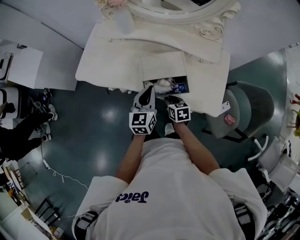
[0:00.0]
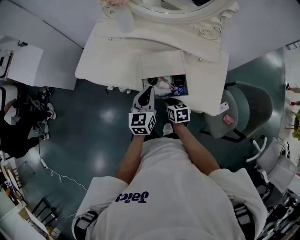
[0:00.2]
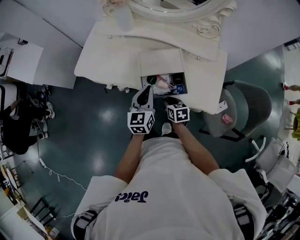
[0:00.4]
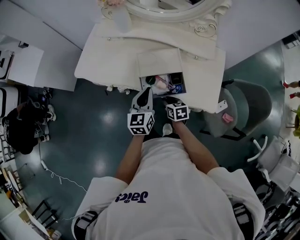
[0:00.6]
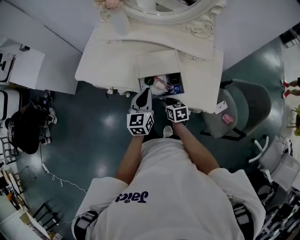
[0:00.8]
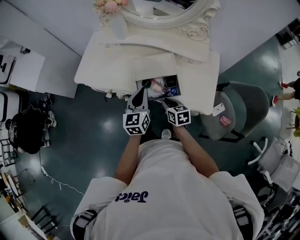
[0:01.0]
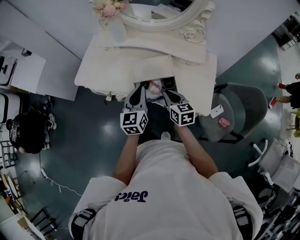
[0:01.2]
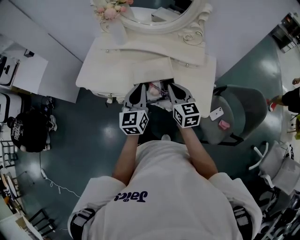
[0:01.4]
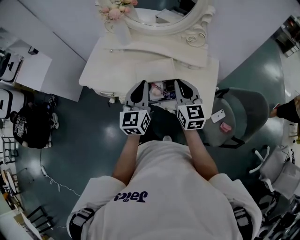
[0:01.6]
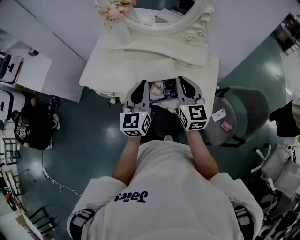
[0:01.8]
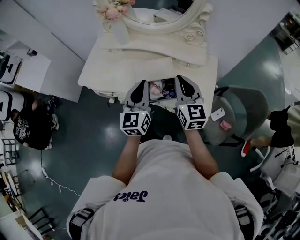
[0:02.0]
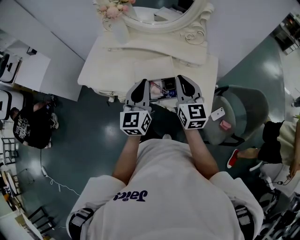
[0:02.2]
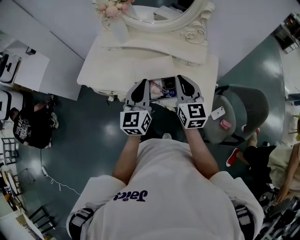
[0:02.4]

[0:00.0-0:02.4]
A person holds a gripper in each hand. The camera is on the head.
0:00.0 to 0:01.2: The right gripper travels upward by approximately 15 cm, and changes its angle by about 20 degrees. The left gripper goes some 5 cm upward.
0:01.2 to 0:02.4: The right gripper travels upward by about 15 cm, and rotates some 30 degrees. Meanwhile the left gripper moves upward, roughly 10 cm.

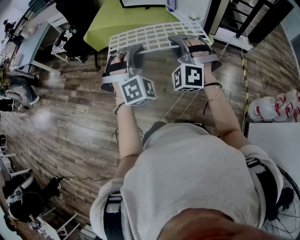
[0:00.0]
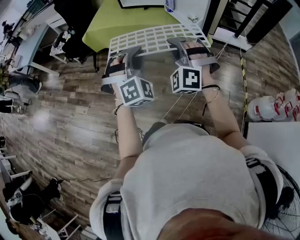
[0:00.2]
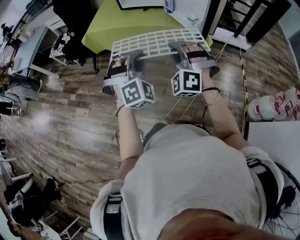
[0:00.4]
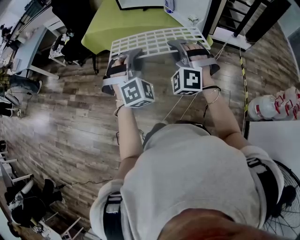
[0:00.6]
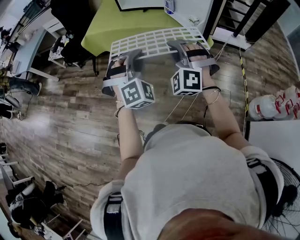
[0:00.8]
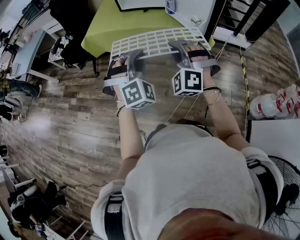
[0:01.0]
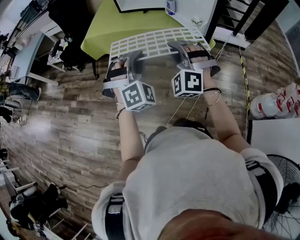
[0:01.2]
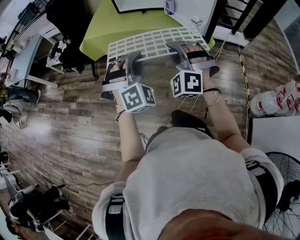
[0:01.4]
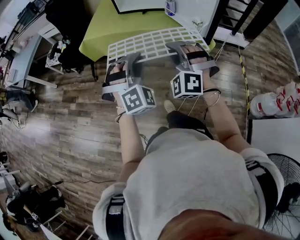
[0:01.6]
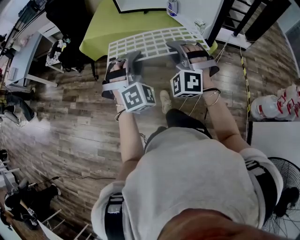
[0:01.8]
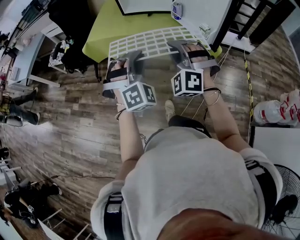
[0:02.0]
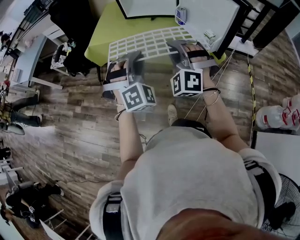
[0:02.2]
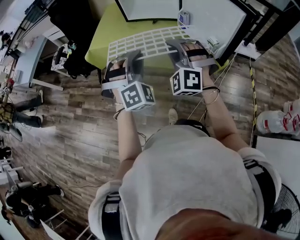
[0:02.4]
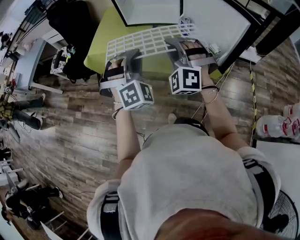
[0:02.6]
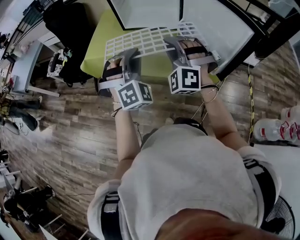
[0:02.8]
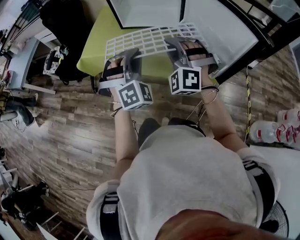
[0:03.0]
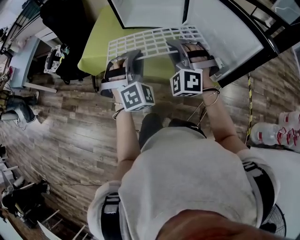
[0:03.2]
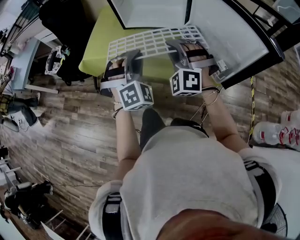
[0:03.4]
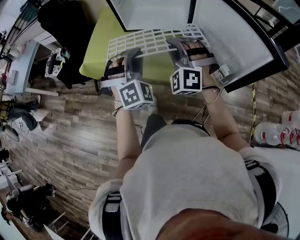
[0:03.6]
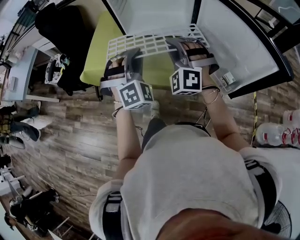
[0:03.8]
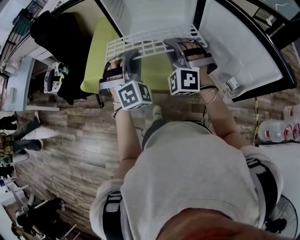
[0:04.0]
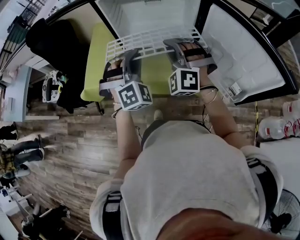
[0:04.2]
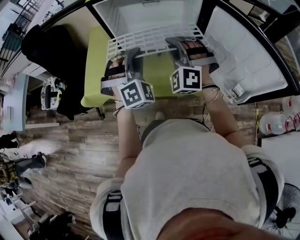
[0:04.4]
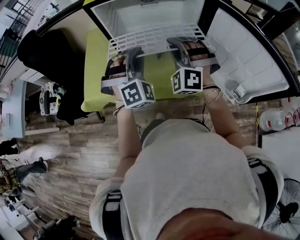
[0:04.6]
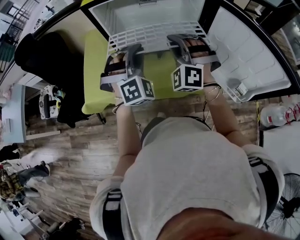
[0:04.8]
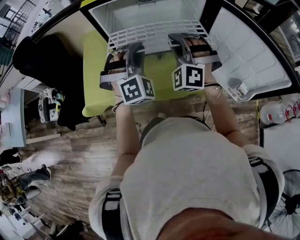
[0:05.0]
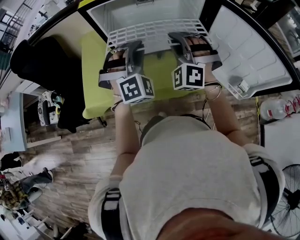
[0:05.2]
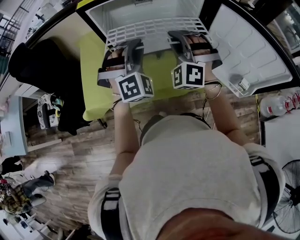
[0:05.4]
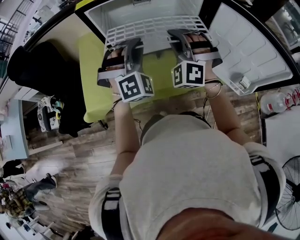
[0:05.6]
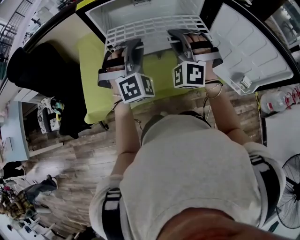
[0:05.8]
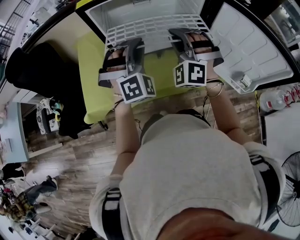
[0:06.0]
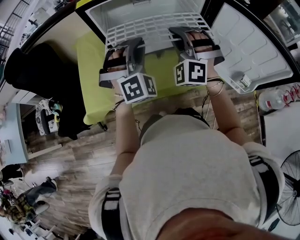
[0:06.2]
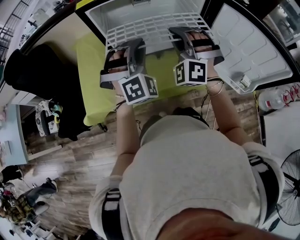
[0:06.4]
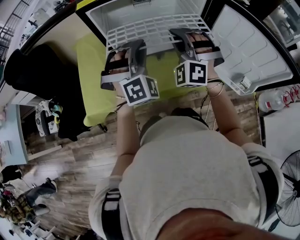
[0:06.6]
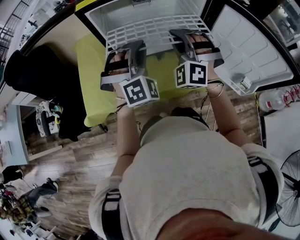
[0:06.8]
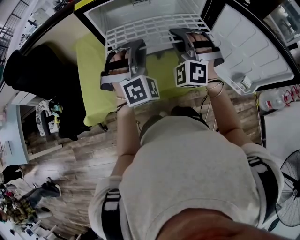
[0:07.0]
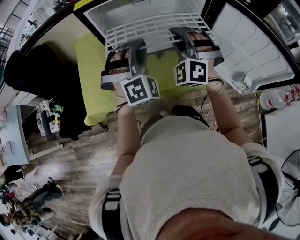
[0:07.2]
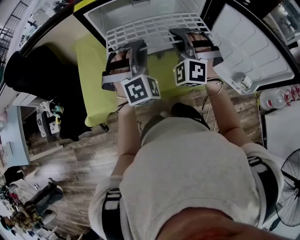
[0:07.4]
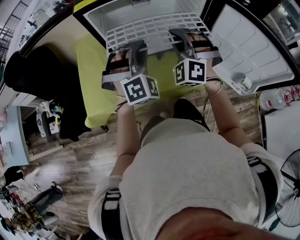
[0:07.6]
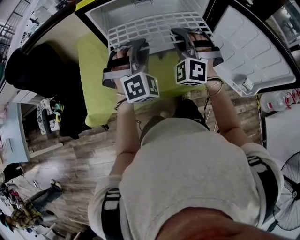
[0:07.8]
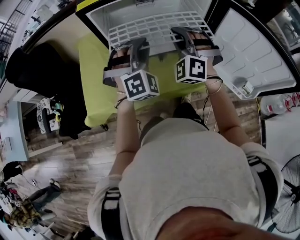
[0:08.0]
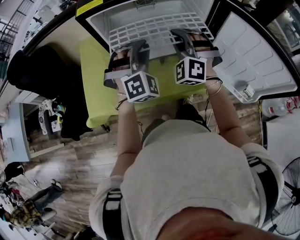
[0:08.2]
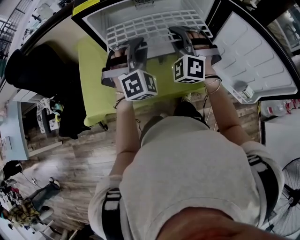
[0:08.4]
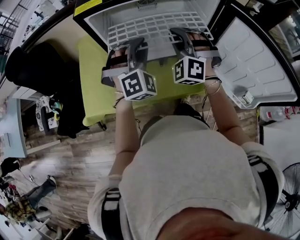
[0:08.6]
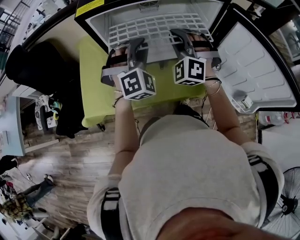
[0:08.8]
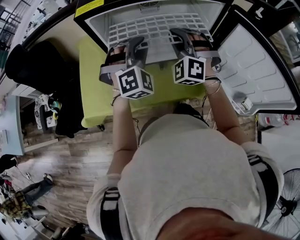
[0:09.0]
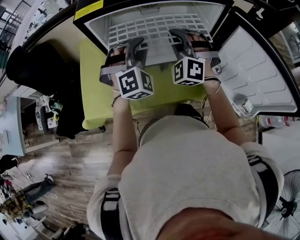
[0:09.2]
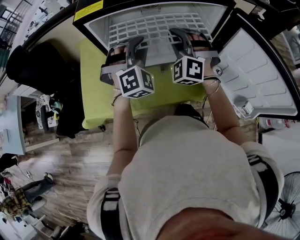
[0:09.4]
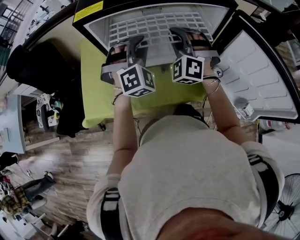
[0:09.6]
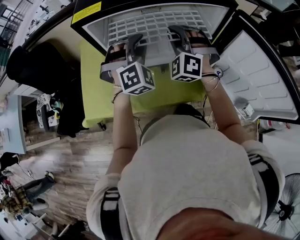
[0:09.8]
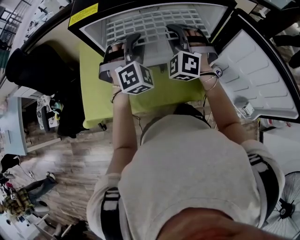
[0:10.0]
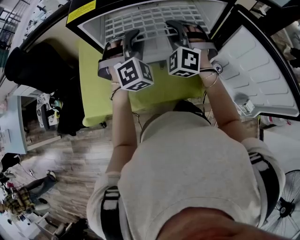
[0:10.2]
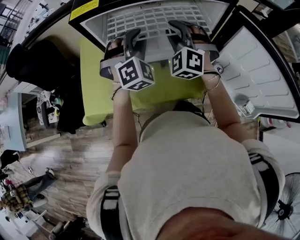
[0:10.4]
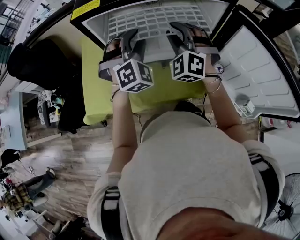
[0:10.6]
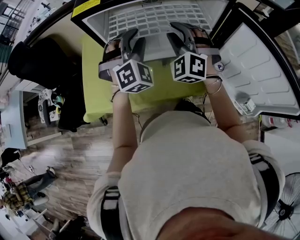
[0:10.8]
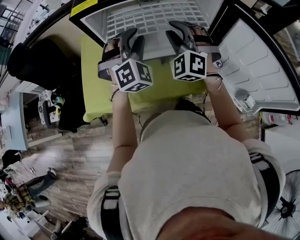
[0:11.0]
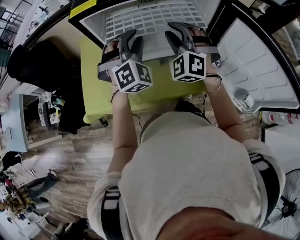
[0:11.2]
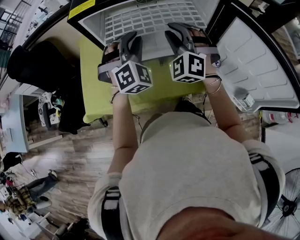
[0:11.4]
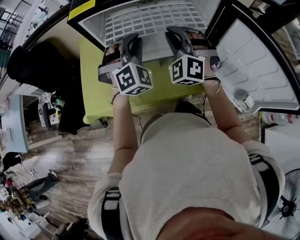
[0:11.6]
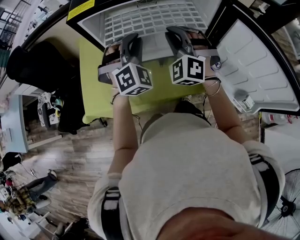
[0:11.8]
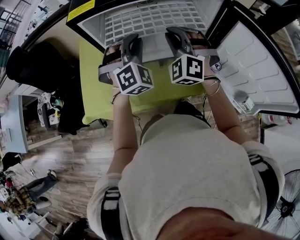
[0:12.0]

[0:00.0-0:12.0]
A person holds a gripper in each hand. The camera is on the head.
0:00.0 to 0:01.6: The two grippers go some 5 cm forward.
0:01.6 to 0:03.0: Both grippers travel together forward, some 25 cm.
0:03.0 to 0:04.4: The two grippers go approximately 20 cm forward.
0:04.4 to 0:06.0: Both grippers travel together forward, some 5 cm.
0:06.0 to 0:07.6: The grippers stay close to where they were, moving slightly.
0:07.6 to 0:09.0: The grippers both shift forward by some 5 cm.
0:09.0 to 0:12.0: The grippers make only small movements.

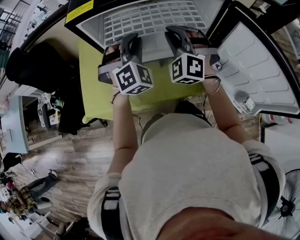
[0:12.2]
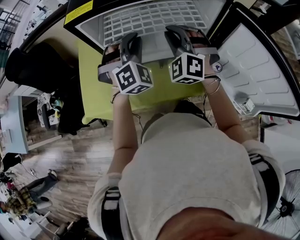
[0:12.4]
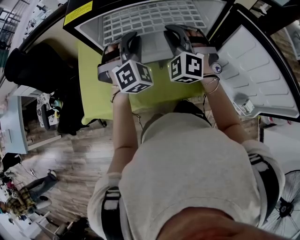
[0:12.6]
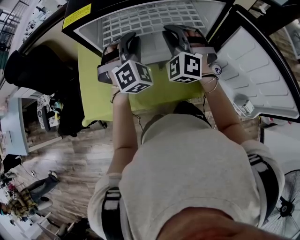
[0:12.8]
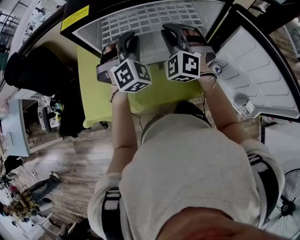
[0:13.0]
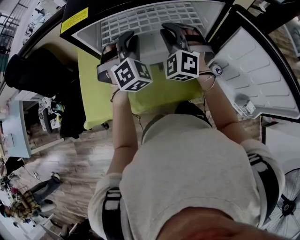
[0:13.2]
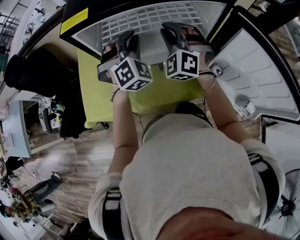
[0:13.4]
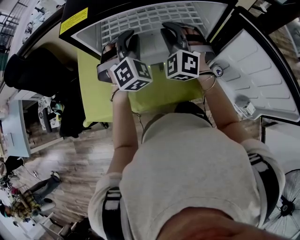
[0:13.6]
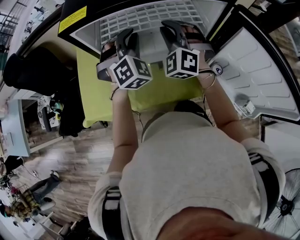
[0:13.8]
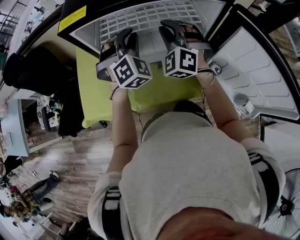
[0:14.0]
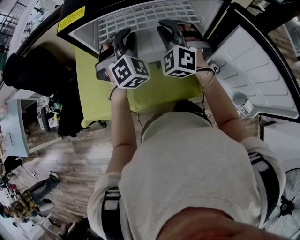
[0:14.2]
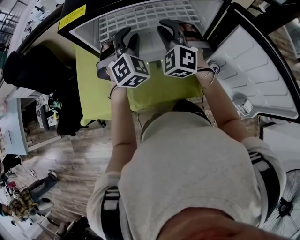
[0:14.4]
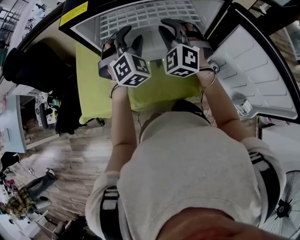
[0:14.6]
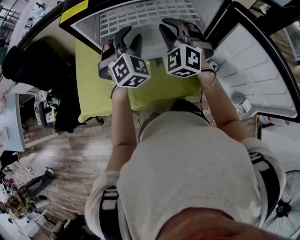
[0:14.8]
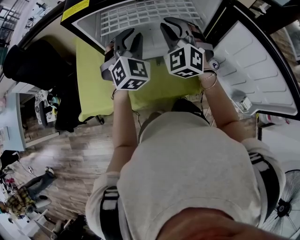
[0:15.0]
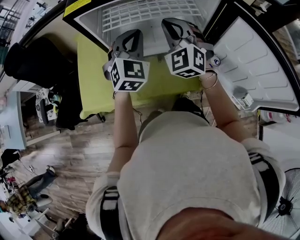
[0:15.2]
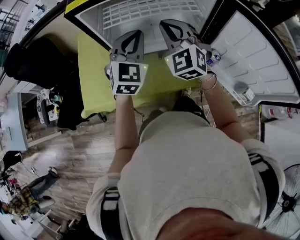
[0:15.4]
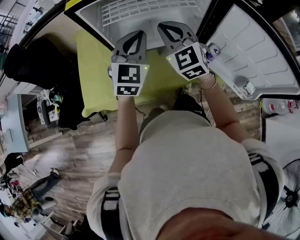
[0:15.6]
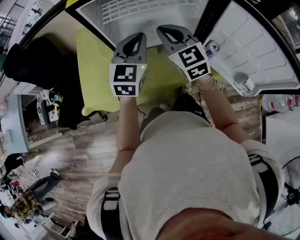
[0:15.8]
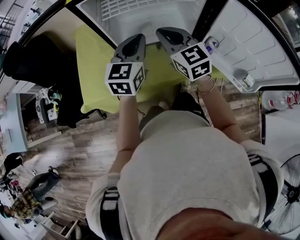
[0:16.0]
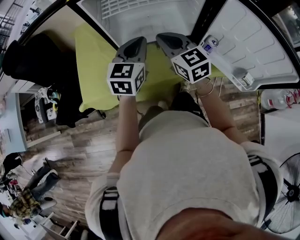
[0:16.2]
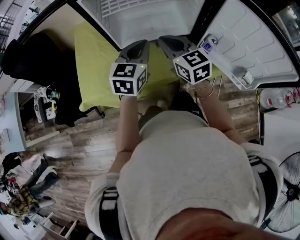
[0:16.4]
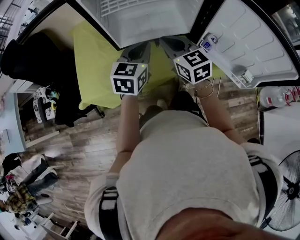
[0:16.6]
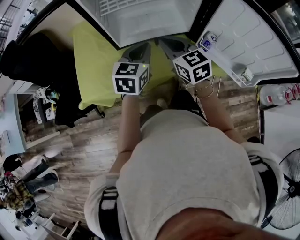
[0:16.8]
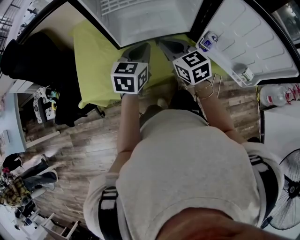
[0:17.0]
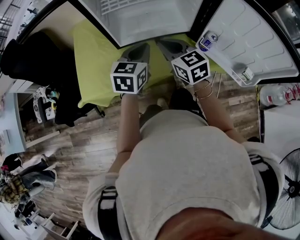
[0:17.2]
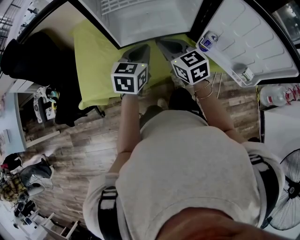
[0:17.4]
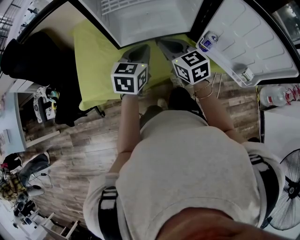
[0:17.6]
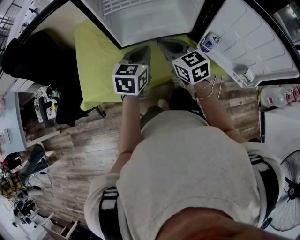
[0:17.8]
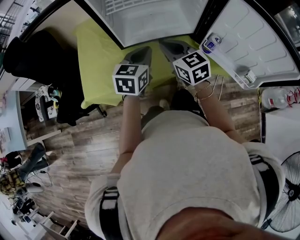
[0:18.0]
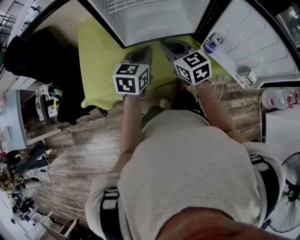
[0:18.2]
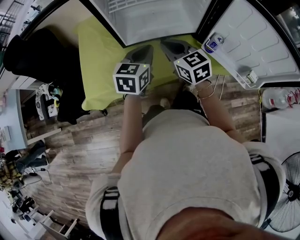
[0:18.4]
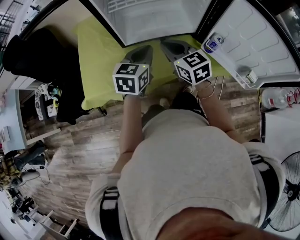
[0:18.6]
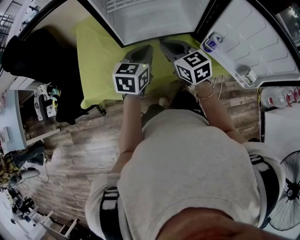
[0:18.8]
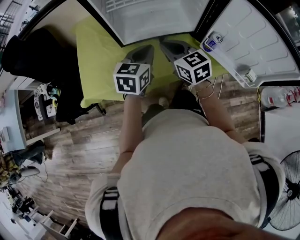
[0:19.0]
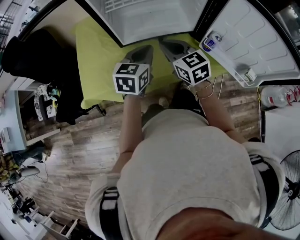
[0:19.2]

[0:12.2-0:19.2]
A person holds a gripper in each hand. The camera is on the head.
0:12.2 to 0:13.6: The grippers move only a little.
0:13.6 to 0:15.0: The left gripper opens and closes again.
0:15.0 to 0:16.4: The left gripper goes about 10 cm backward, and rotates around the line of its fingers by some 40 degrees, counterclockwise from behind; the right gripper travels backward and downward by some 15 cm, and rotates around the line of its fingers by some 50 degrees, clockwise from behind.
0:16.4 to 0:19.2: The grippers make only small movements.

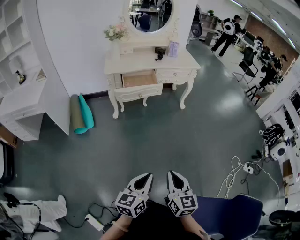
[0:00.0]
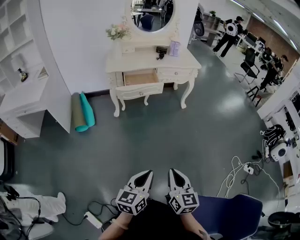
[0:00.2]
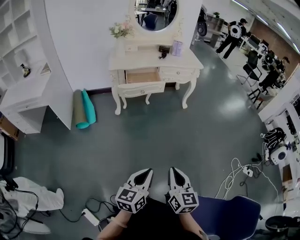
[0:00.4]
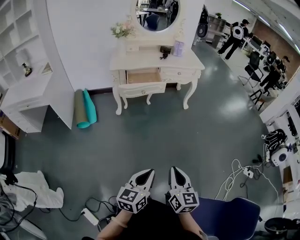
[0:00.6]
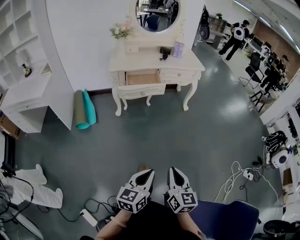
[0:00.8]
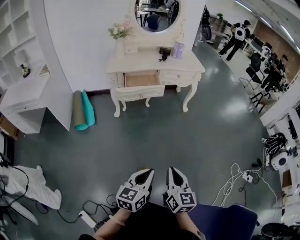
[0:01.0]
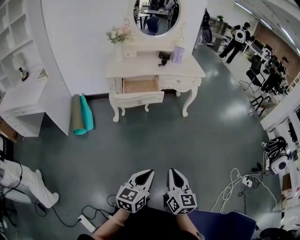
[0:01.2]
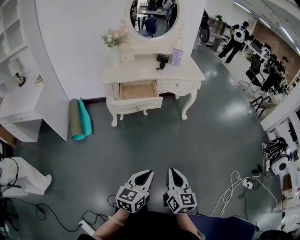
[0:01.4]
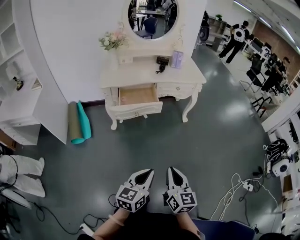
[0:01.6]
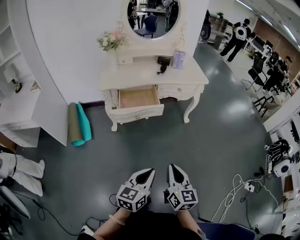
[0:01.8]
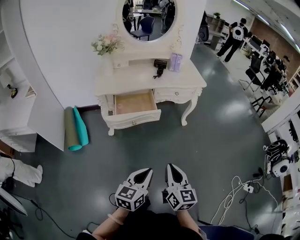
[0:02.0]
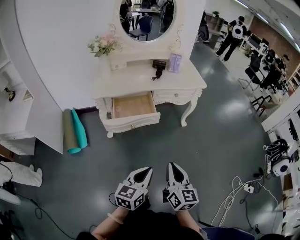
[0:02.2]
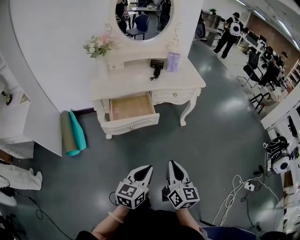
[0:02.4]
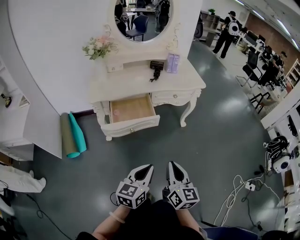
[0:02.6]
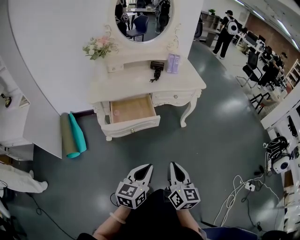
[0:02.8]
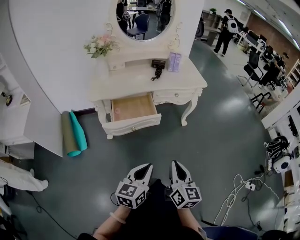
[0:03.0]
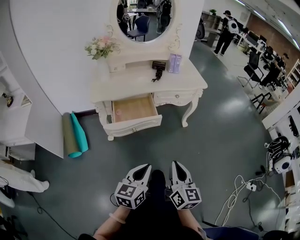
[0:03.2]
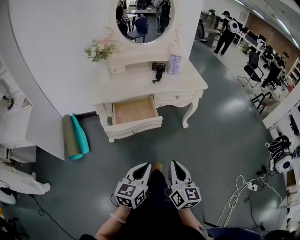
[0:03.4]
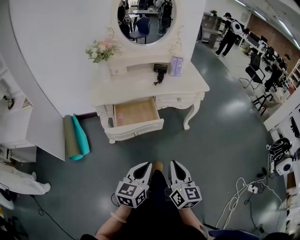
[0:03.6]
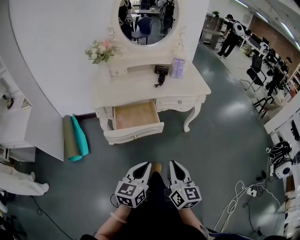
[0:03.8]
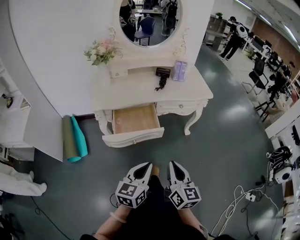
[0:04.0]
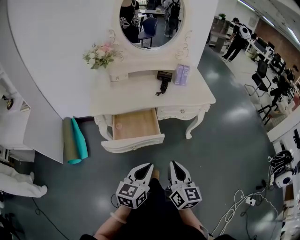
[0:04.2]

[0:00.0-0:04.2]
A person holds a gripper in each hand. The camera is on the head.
0:00.0 to 0:01.4: Both grippers travel together forward, roughly 15 cm.
0:01.4 to 0:02.8: The grippers both shift forward by approximately 20 cm.
0:02.8 to 0:04.2: Both grippers travel together forward, roughly 10 cm.
